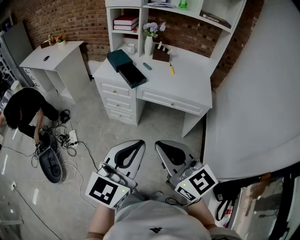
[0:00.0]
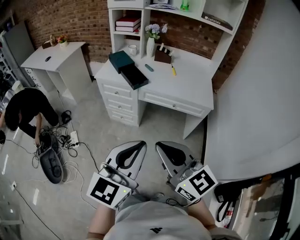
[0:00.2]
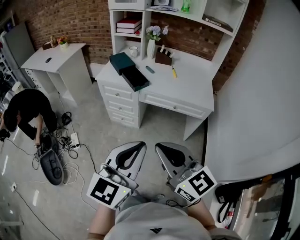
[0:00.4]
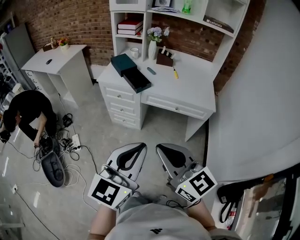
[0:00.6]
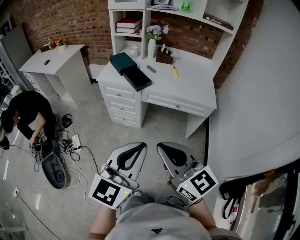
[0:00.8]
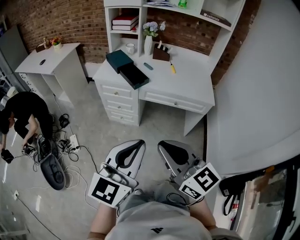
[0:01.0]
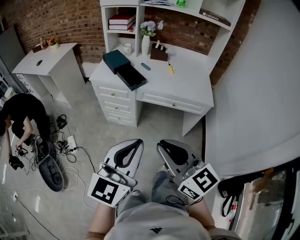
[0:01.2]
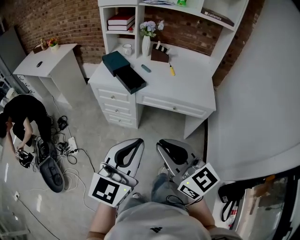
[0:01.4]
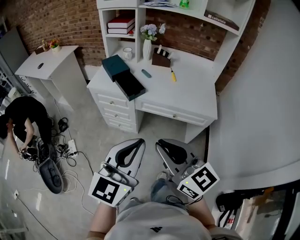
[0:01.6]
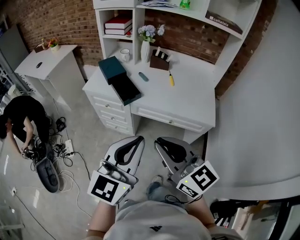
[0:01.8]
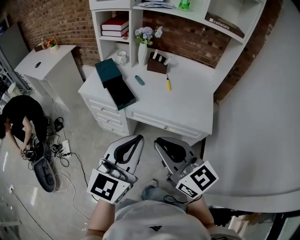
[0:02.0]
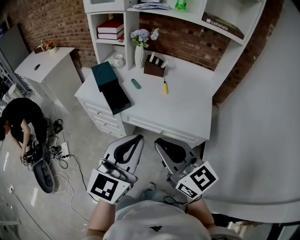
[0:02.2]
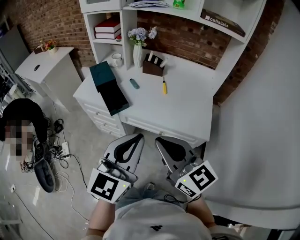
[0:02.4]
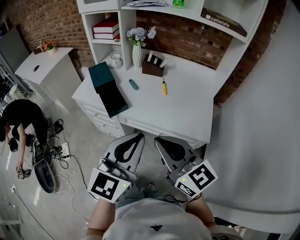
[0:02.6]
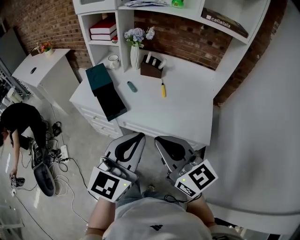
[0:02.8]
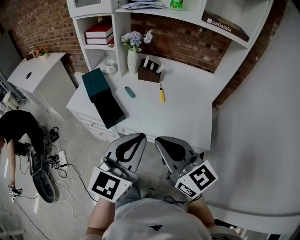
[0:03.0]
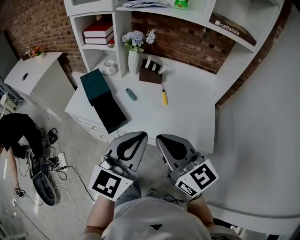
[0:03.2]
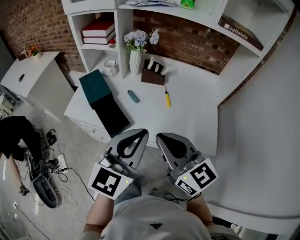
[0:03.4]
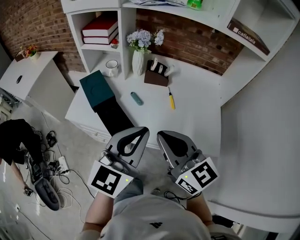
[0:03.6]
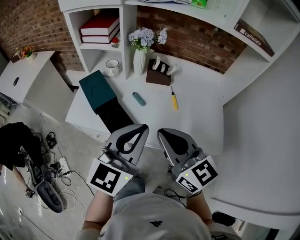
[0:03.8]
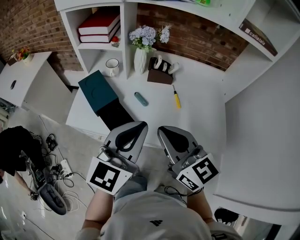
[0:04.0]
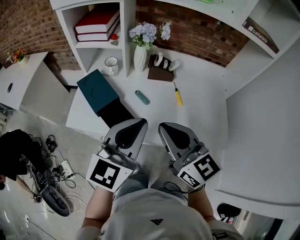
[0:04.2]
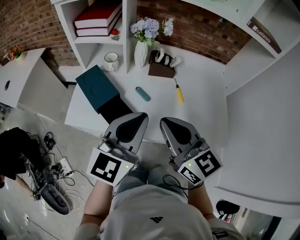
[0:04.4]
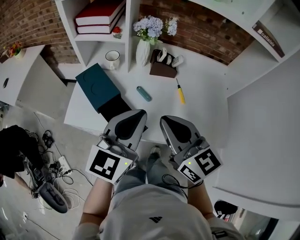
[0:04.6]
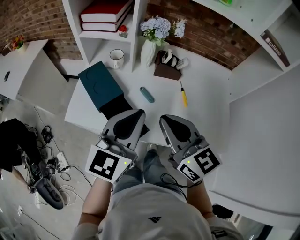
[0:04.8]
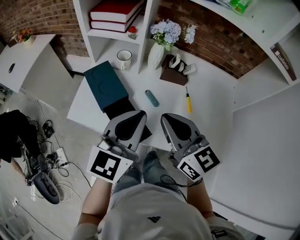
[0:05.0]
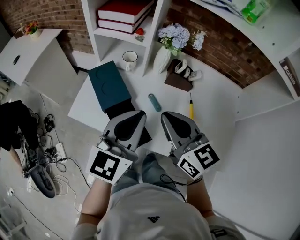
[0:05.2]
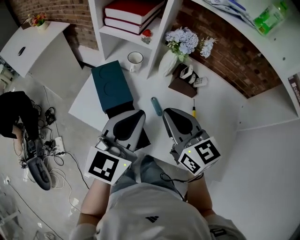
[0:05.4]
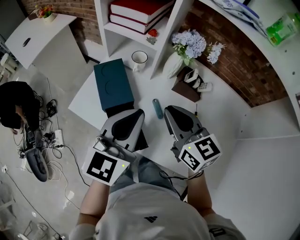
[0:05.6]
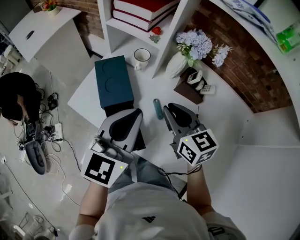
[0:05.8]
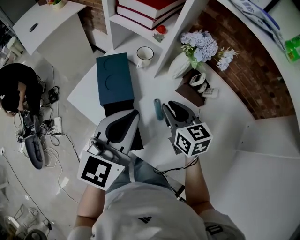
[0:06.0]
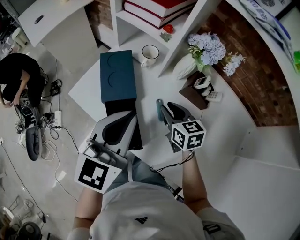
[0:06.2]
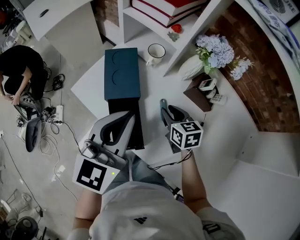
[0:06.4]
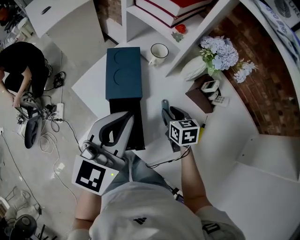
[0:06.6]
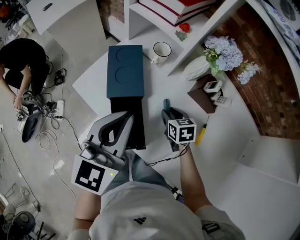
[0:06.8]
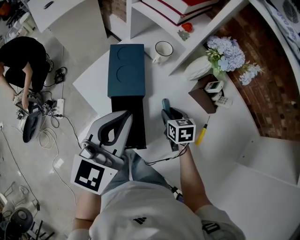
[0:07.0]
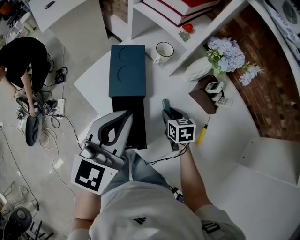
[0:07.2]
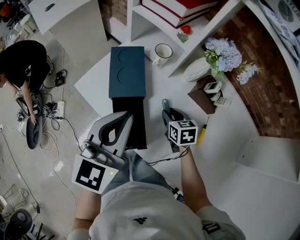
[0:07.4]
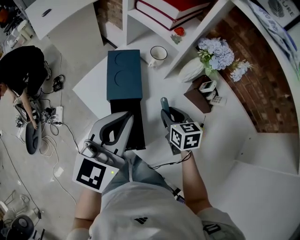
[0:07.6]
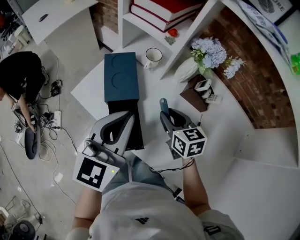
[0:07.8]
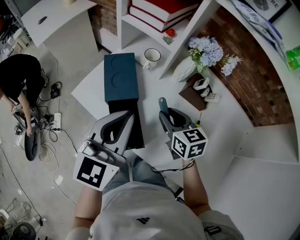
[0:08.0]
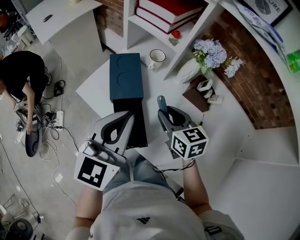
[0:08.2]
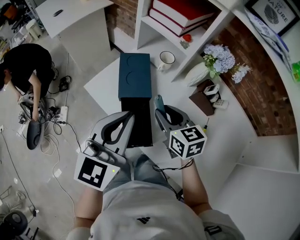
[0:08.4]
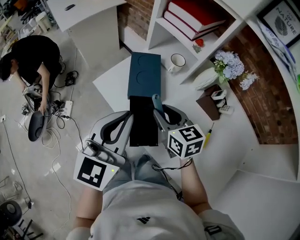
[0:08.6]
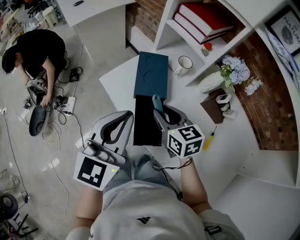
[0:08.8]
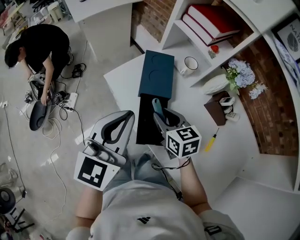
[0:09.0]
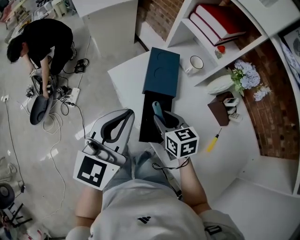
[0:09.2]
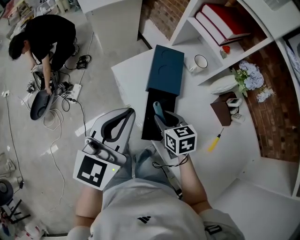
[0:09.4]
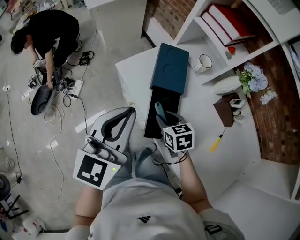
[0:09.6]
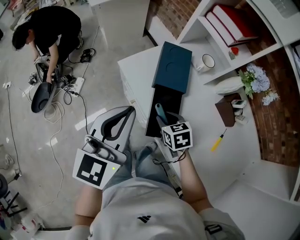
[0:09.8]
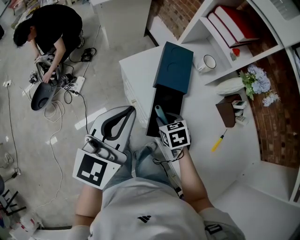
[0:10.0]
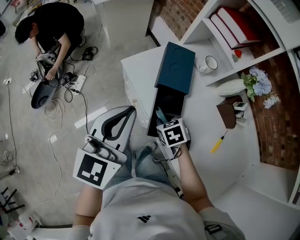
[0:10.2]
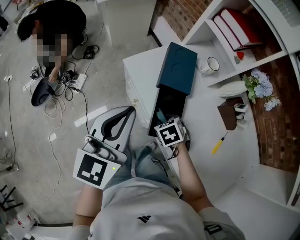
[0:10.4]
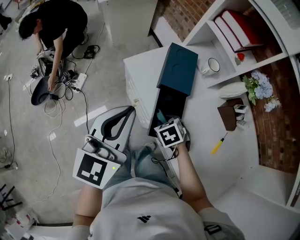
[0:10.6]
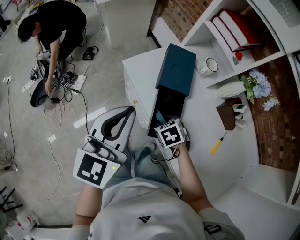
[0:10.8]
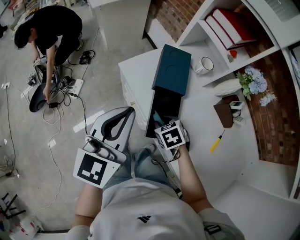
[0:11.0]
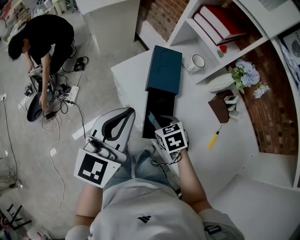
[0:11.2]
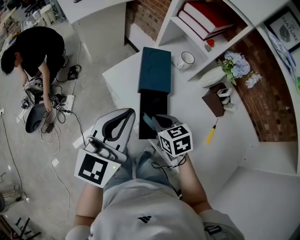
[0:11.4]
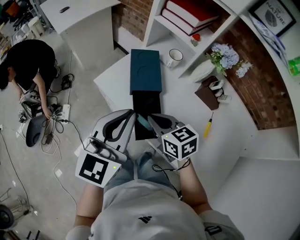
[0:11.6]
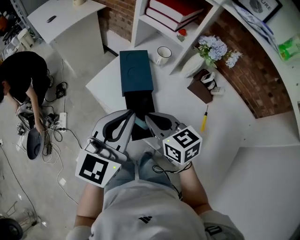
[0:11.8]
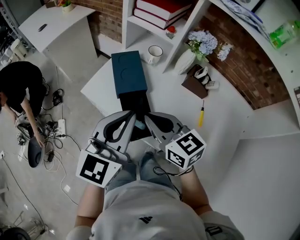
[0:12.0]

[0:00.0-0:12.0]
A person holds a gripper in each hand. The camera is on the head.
0:00.0 to 0:01.6: The grippers both shift forward by approximately 15 cm.
0:01.6 to 0:03.0: Both grippers move forward and to the right, about 25 cm.
0:03.0 to 0:04.4: The grippers both shift forward and to the left by some 25 cm.
0:04.4 to 0:06.0: The left gripper moves some 15 cm, and turns by about 30 degrees. Meanwhile the right gripper changes place by approximately 25 cm, and turns by about 30 degrees.
0:06.0 to 0:07.6: The right gripper goes roughly 10 cm downward.
0:07.6 to 0:09.0: The right gripper is displaced to the left by about 15 cm; the left gripper travels to the left and backward by some 10 cm.
0:09.0 to 0:10.4: The right gripper travels downward by approximately 15 cm, and tilts its fingers about 40 degrees downward; the left gripper moves to the left, about 5 cm.
0:10.4 to 0:12.0: The right gripper is displaced upward by about 20 cm, points its fingers about 50 degrees further upward, and closes up; the left gripper is displaced to the right by roughly 10 cm, and rotates approximately 30 degrees.

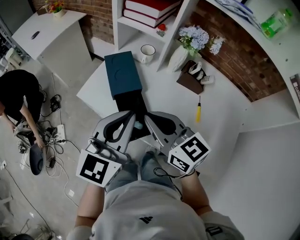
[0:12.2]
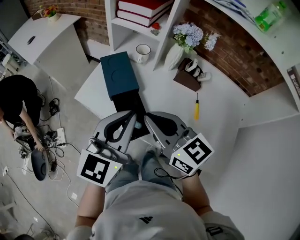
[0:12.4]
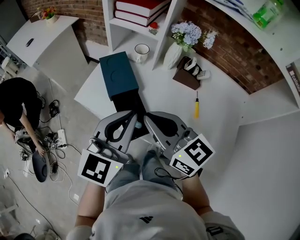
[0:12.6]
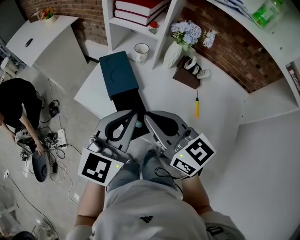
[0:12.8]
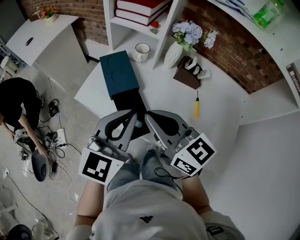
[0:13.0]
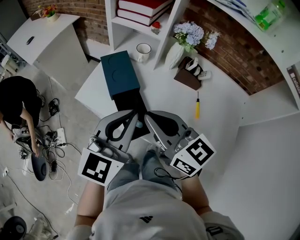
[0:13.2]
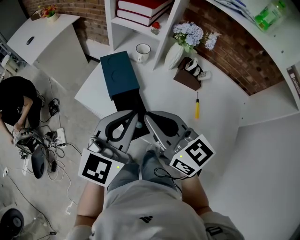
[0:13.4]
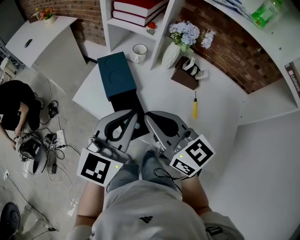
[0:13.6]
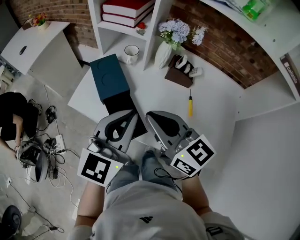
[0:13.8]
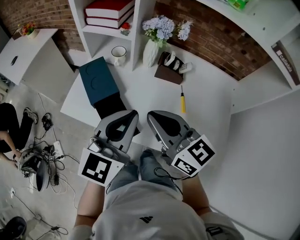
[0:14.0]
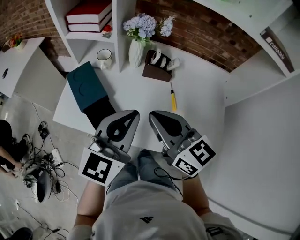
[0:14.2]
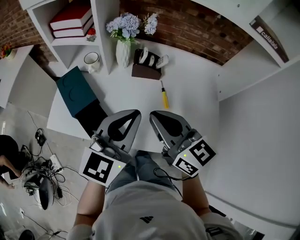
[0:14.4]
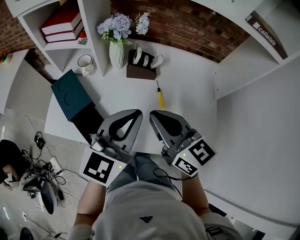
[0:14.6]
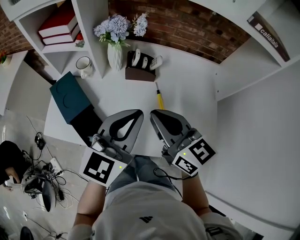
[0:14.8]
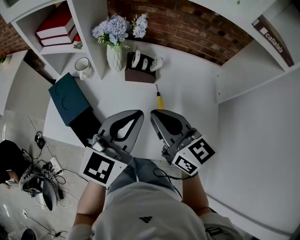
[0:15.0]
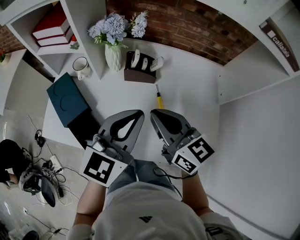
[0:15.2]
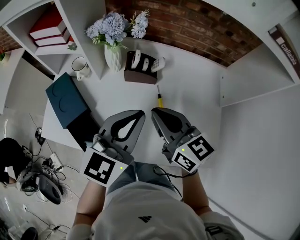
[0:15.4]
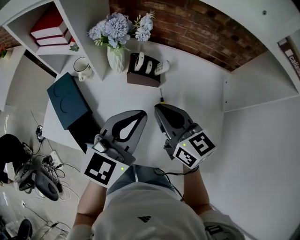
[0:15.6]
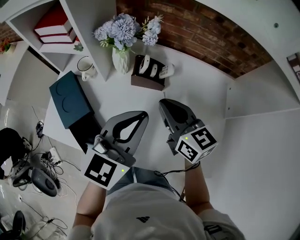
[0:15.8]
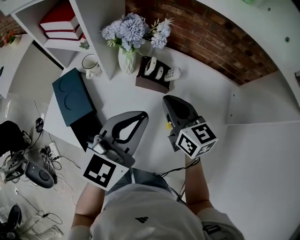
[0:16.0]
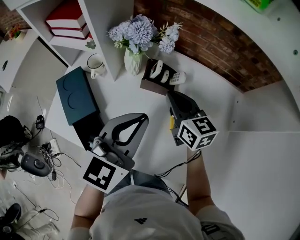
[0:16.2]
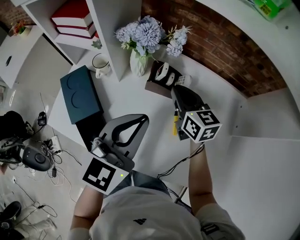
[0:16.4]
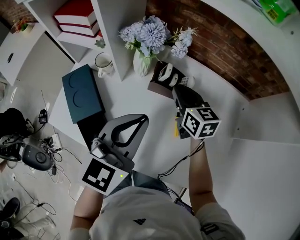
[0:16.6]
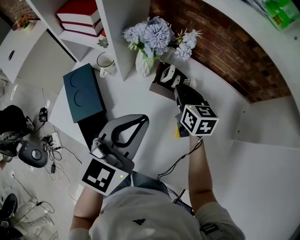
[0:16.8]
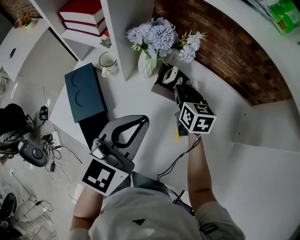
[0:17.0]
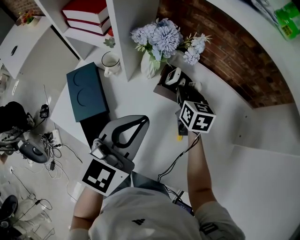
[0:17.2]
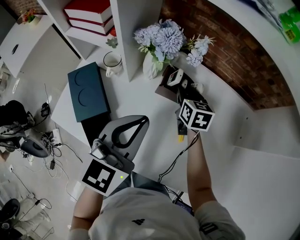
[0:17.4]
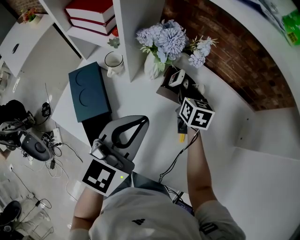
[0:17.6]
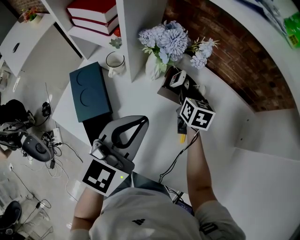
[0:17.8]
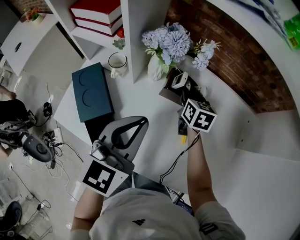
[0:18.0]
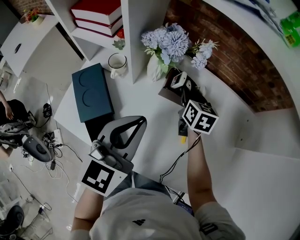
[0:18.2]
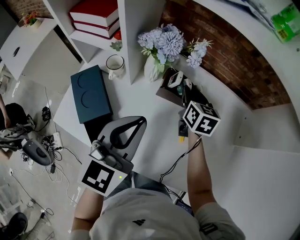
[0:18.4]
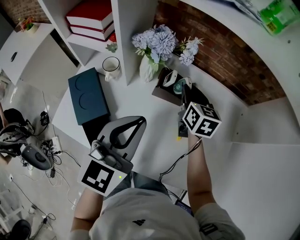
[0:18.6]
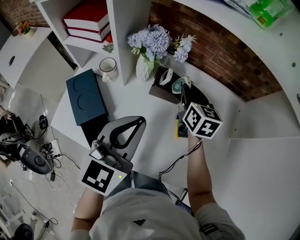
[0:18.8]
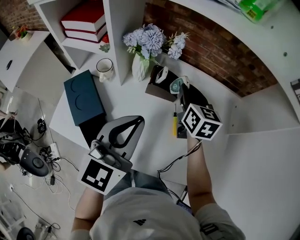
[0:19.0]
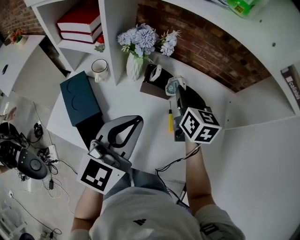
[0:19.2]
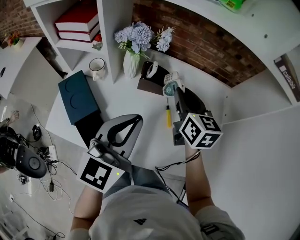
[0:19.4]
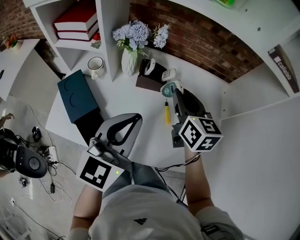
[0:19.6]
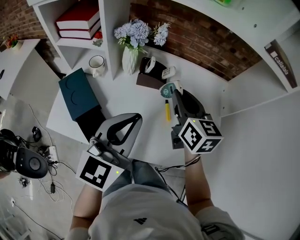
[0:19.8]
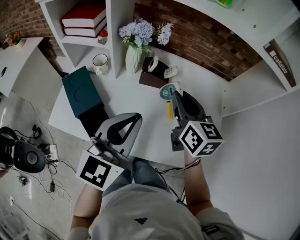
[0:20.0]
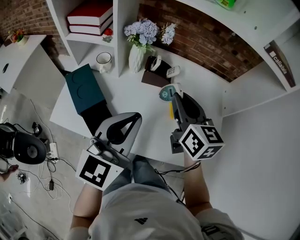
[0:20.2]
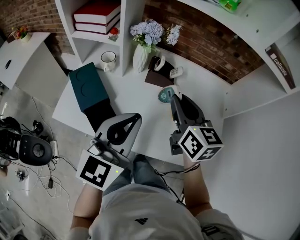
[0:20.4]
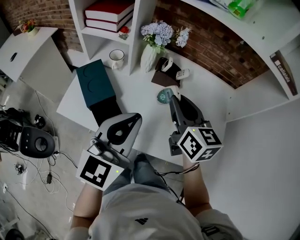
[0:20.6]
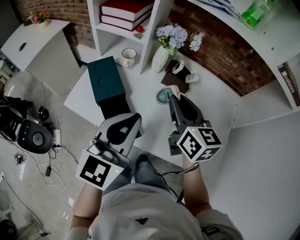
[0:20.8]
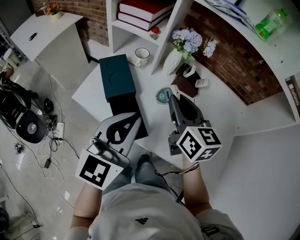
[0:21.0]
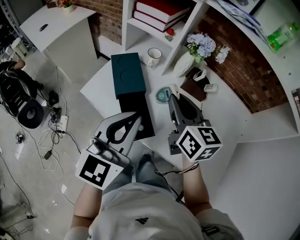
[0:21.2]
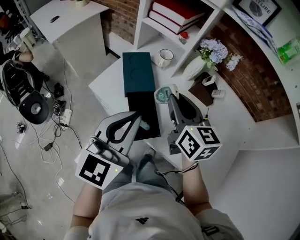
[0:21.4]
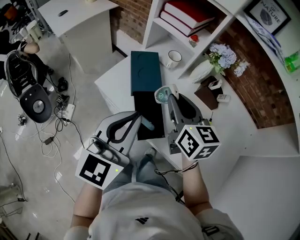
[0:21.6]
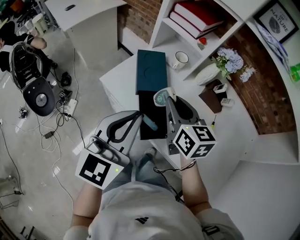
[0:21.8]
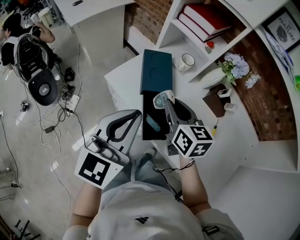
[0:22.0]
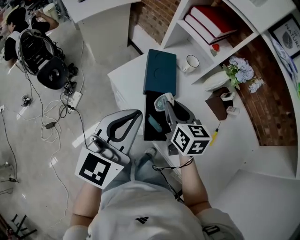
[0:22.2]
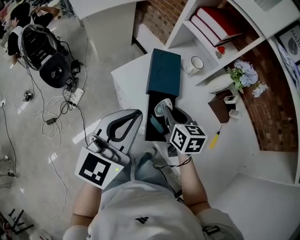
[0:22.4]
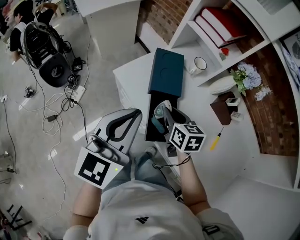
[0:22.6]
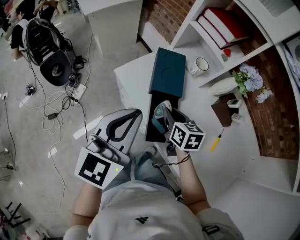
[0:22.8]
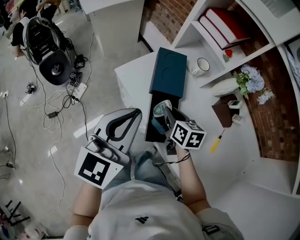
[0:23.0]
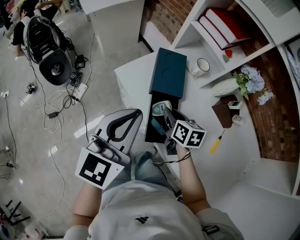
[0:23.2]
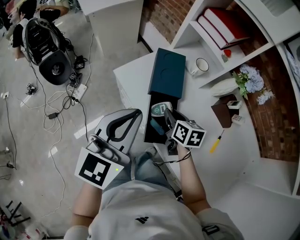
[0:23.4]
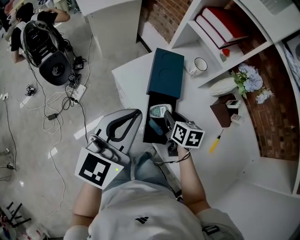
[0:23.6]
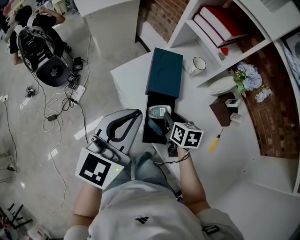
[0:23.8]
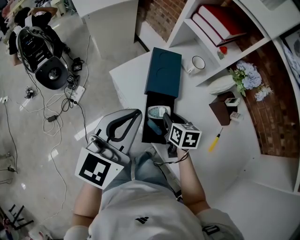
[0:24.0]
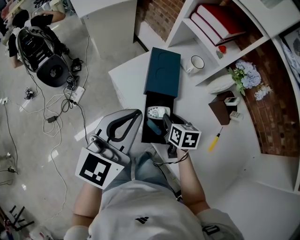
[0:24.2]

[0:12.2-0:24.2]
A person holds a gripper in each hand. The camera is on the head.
0:12.2 to 0:13.8: The right gripper ends up approximately 5 cm from where it was.
0:13.8 to 0:15.2: The two grippers go approximately 20 cm to the right and forward.
0:15.2 to 0:16.6: The left gripper moves forward, about 5 cm. The right gripper goes roughly 20 cm forward and downward.
0:16.6 to 0:18.2: The right gripper moves some 5 cm.
0:18.2 to 0:19.8: The right gripper heads backward and upward, covering some 20 cm; the left gripper moves backward, roughly 10 cm.
0:19.8 to 0:21.2: Both grippers travel together to the left and backward, approximately 20 cm. The left gripper swivels some 20 degrees; the right gripper changes its angle by about 20 degrees.
0:21.2 to 0:22.6: The left gripper travels to the left by roughly 10 cm, and turns by about 20 degrees, while the right gripper is displaced downward and to the left by roughly 20 cm, and rotates approximately 30 degrees.
0:22.6 to 0:24.2: The right gripper is displaced downward by approximately 5 cm.
